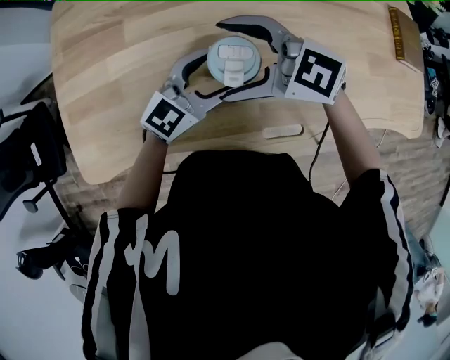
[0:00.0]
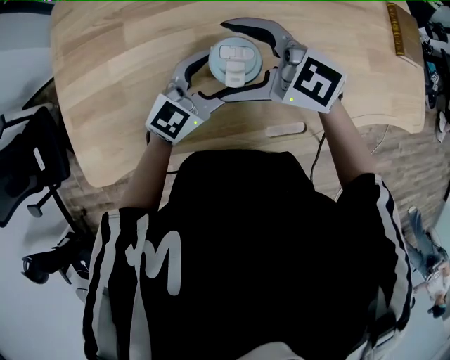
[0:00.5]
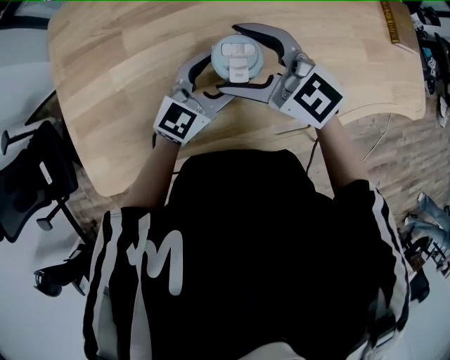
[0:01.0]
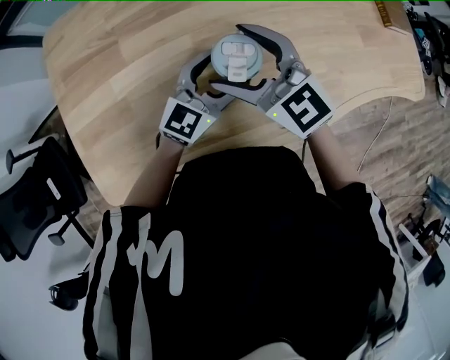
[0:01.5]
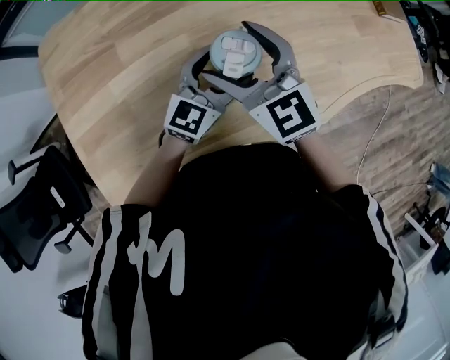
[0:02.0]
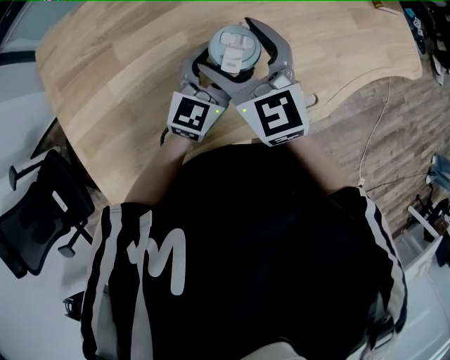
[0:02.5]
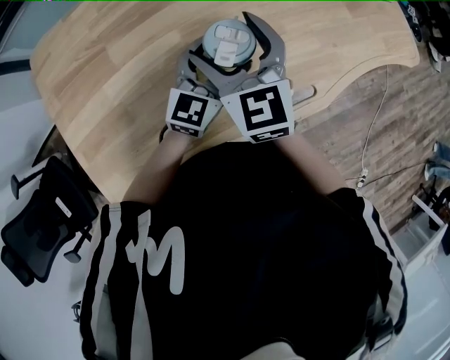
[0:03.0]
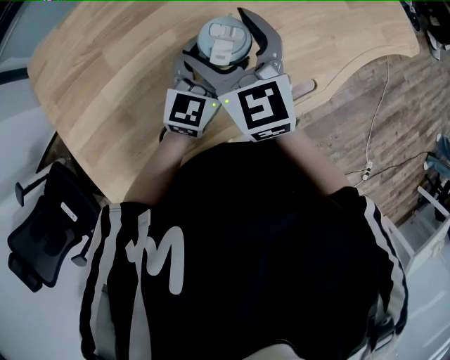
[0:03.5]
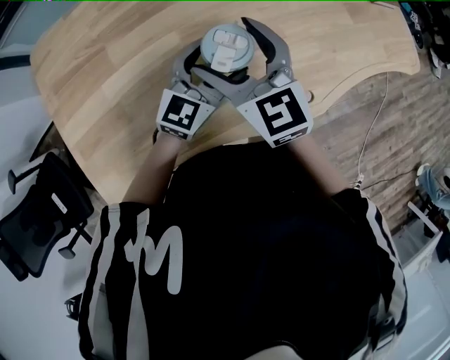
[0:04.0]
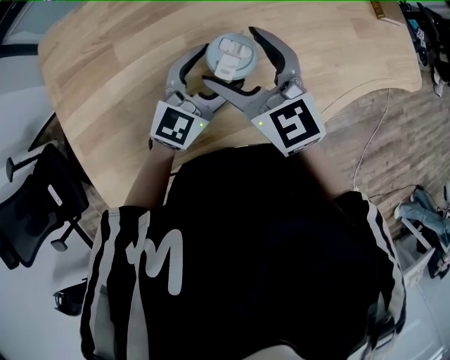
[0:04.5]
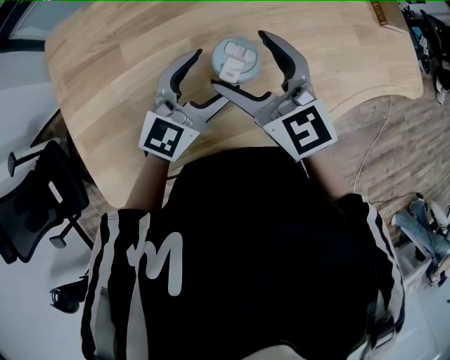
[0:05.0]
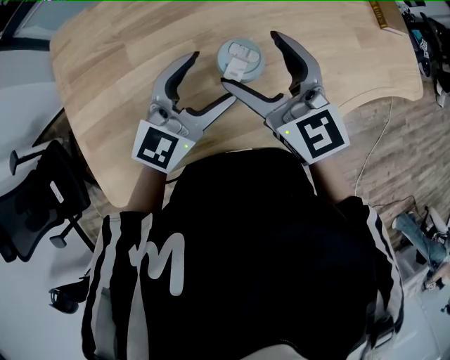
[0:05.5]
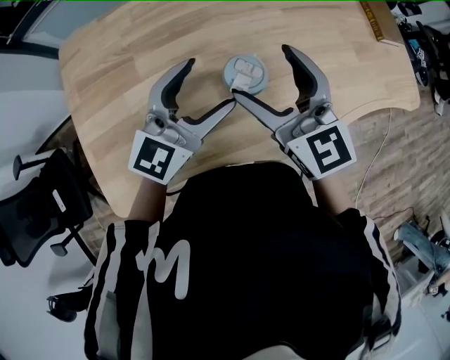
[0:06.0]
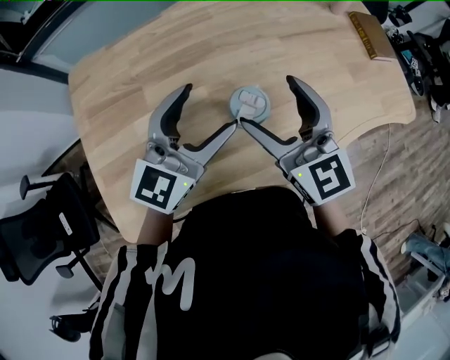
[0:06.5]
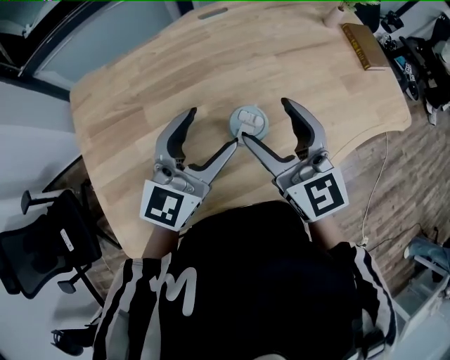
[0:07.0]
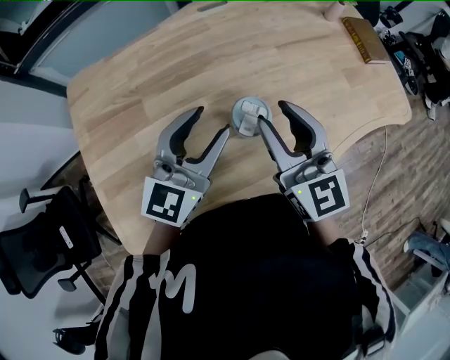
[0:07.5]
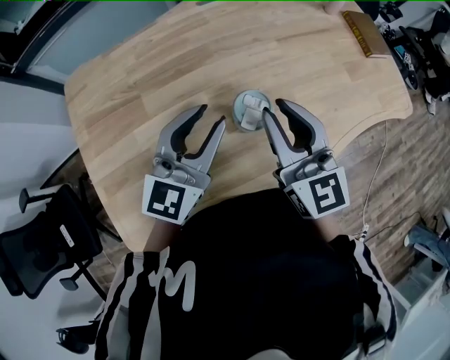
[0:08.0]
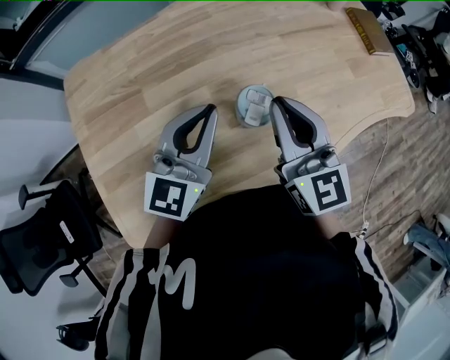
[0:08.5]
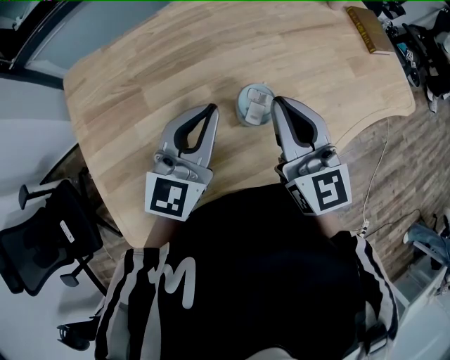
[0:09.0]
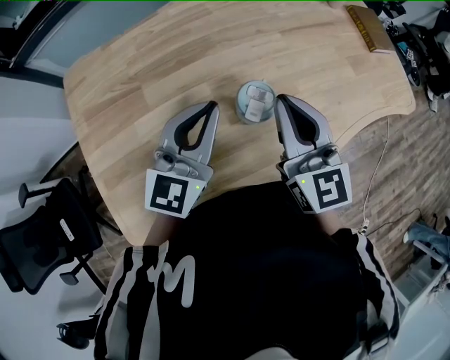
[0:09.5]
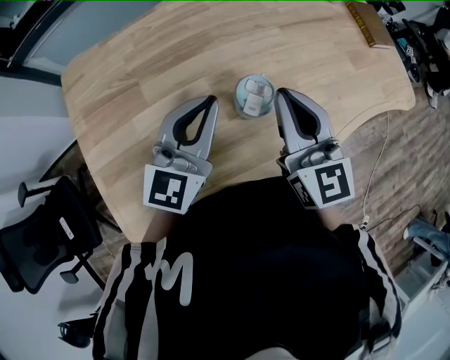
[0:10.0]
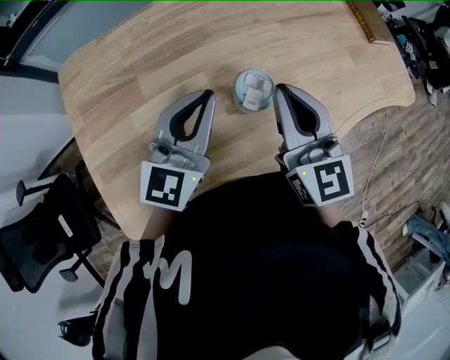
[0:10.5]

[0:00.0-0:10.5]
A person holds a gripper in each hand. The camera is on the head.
0:00.0 to 0:02.0: The right gripper rotates approximately 60 degrees.
0:04.0 to 0:06.5: The left gripper moves upward and to the left, about 20 cm. Meanwhile the right gripper shifts about 10 cm upward.
0:06.5 to 0:08.5: The left gripper closes; the right gripper closes up.
0:08.5 to 0:10.5: Both grippers stay put.

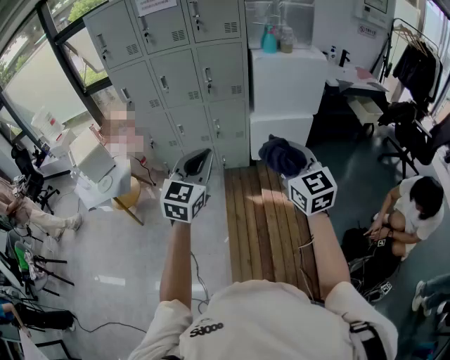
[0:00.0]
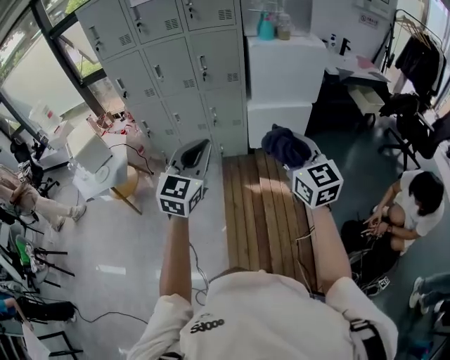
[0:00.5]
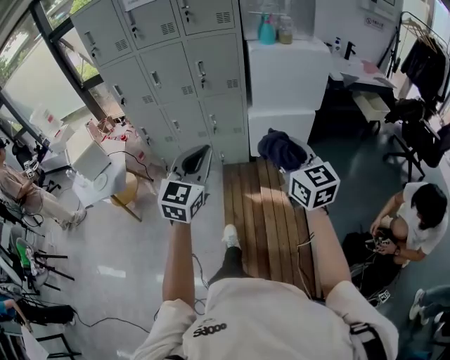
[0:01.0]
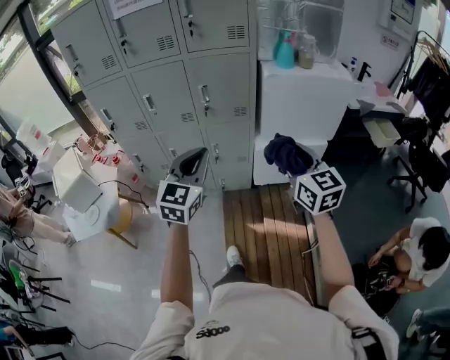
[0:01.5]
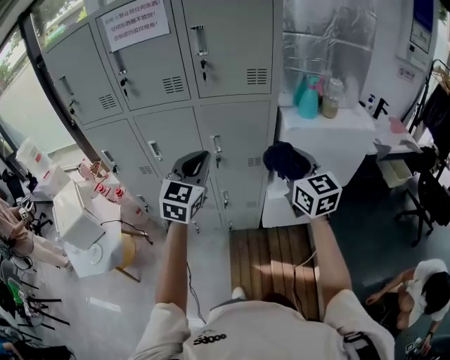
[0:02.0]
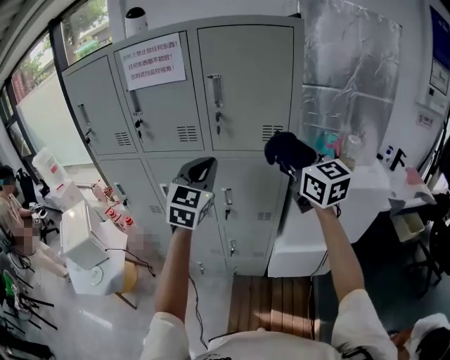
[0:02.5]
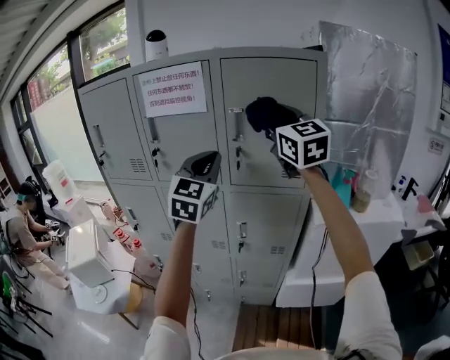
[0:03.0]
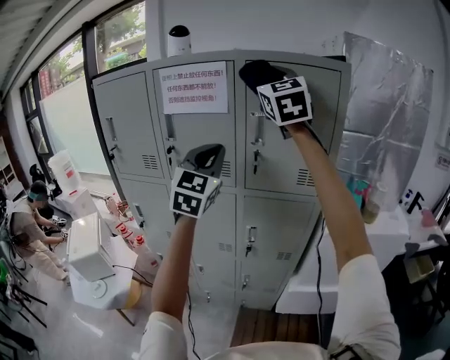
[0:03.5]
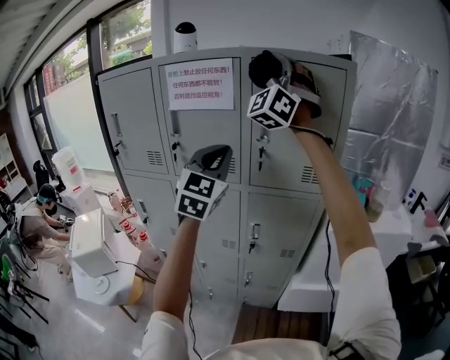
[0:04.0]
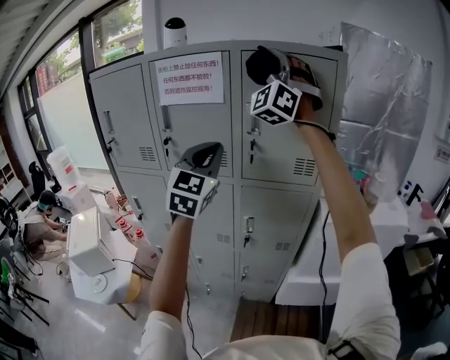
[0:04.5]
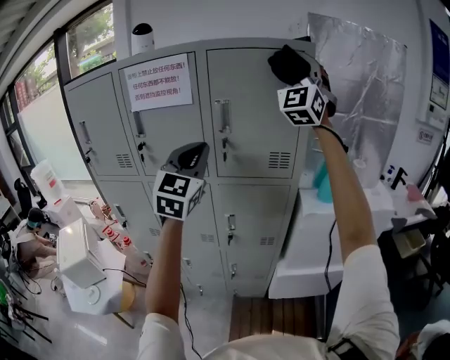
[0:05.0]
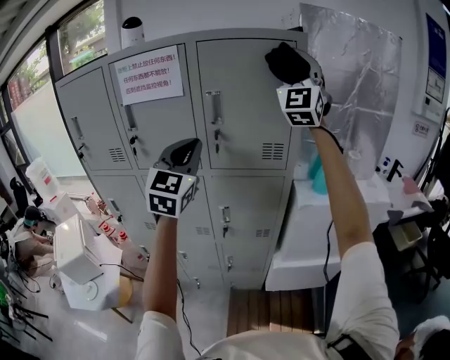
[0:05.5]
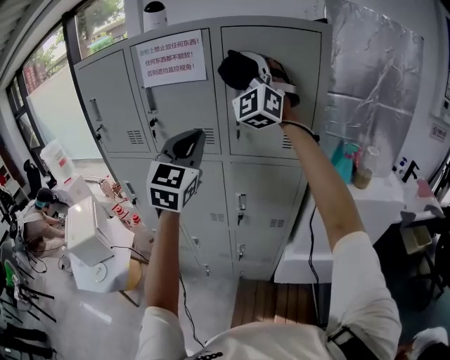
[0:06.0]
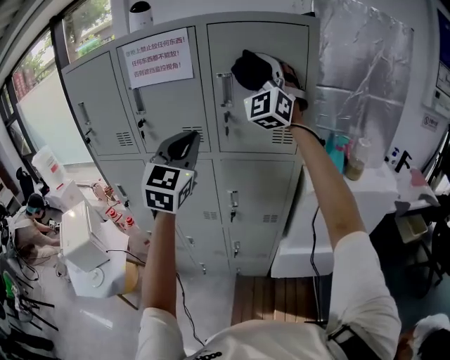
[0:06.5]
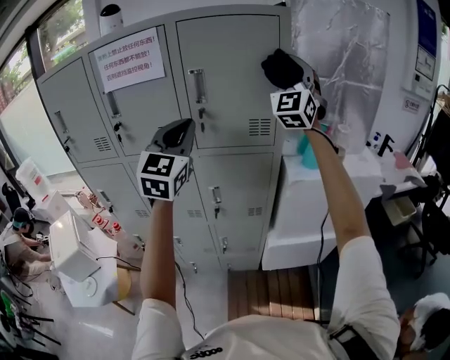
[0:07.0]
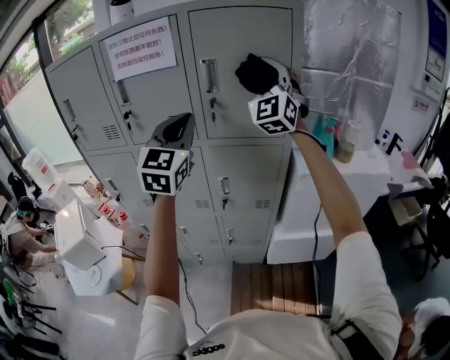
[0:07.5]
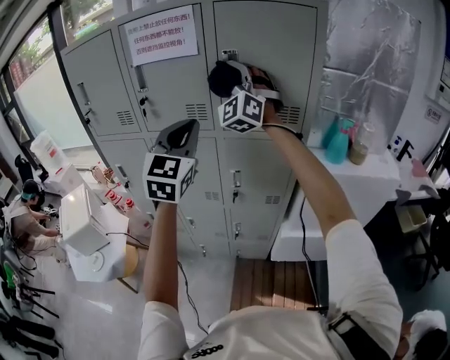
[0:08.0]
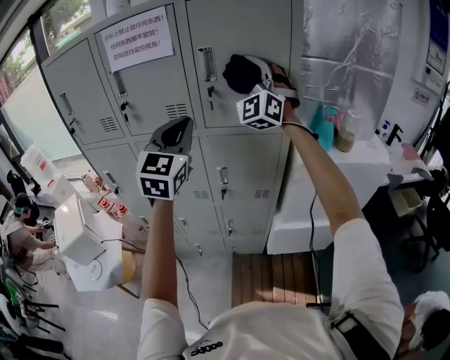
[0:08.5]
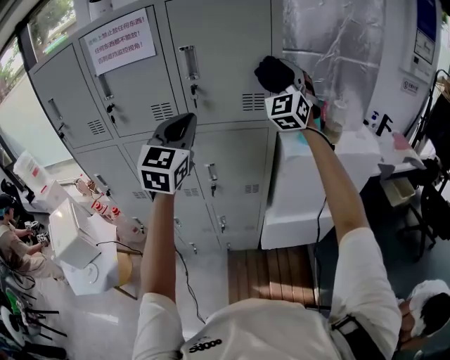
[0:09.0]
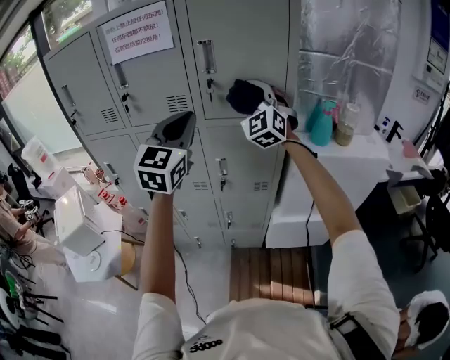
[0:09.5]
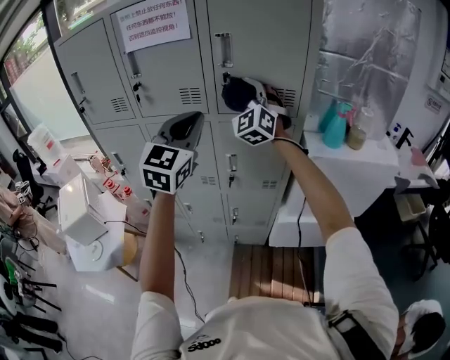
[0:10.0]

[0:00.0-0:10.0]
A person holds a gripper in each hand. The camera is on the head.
0:00.0 to 0:02.0: The two grippers travel together, forward, about 60 cm.
0:02.0 to 0:04.0: The right gripper moves upward and forward, some 50 cm, and rolls counterclockwise, seen from behind, by approximately 70 degrees, while the left gripper moves upward and forward, approximately 25 cm, and swivels some 20 degrees.
0:04.0 to 0:06.0: The right gripper travels downward by some 10 cm, and travels to the right and back again, approximately 20 cm each way.
0:06.0 to 0:08.0: The right gripper travels downward by some 10 cm, and travels to the right and back again, roughly 20 cm each way.
0:08.0 to 0:10.0: The right gripper travels downward by roughly 10 cm, and moves approximately 25 cm to the right and comes back.

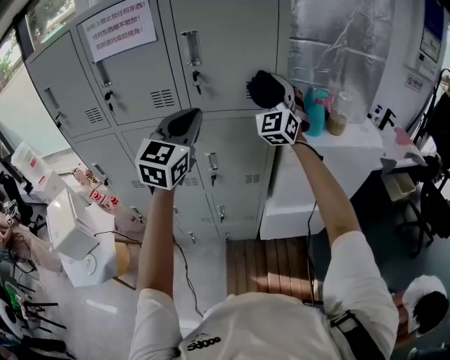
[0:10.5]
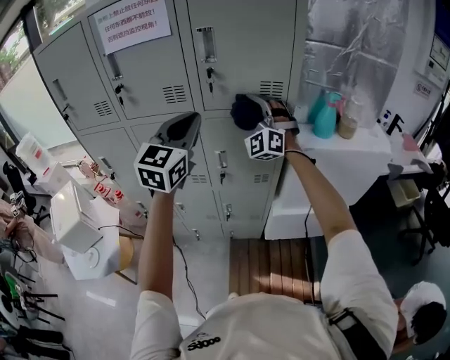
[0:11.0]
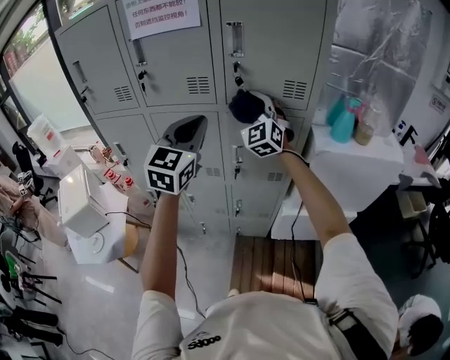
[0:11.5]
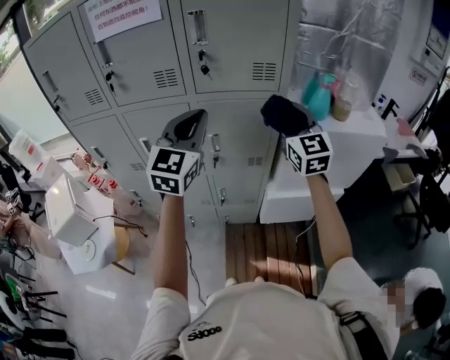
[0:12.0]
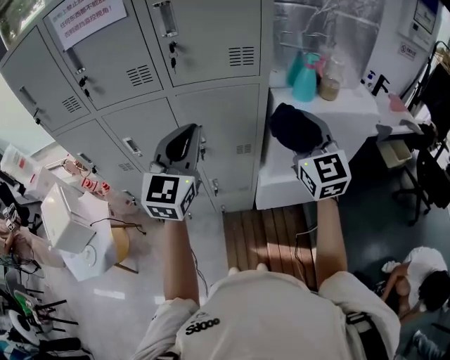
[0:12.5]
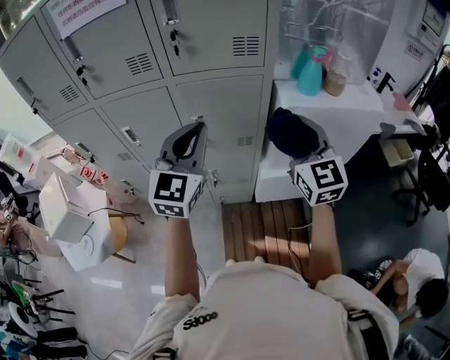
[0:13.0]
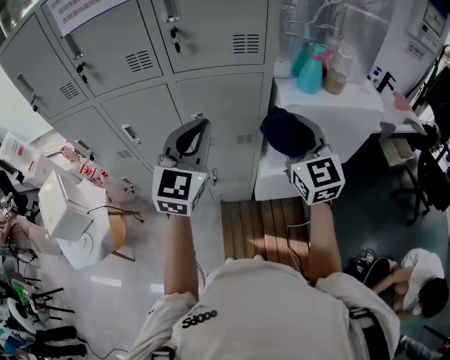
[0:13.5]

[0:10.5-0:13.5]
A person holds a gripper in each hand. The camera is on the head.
0:10.5 to 0:12.0: The left gripper moves approximately 10 cm to the left and comes back. Meanwhile the right gripper is displaced backward and downward by roughly 15 cm, moves roughly 15 cm to the left and comes back, and changes its angle by roughly 40 degrees.
0:12.0 to 0:13.5: The left gripper goes some 10 cm downward and to the right. Meanwhile the right gripper heads backward, covering approximately 10 cm.

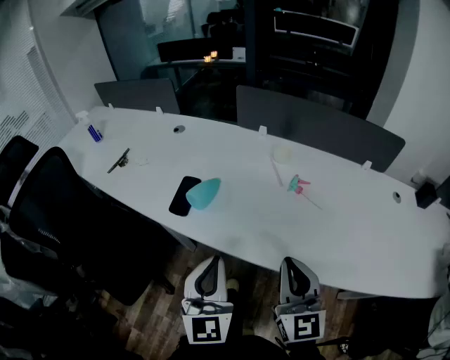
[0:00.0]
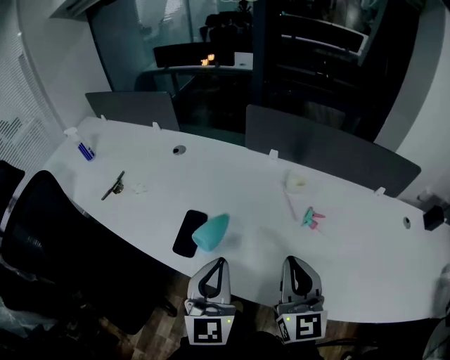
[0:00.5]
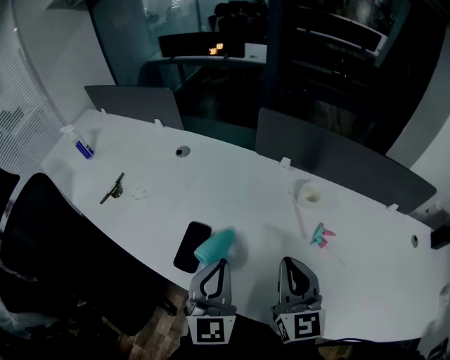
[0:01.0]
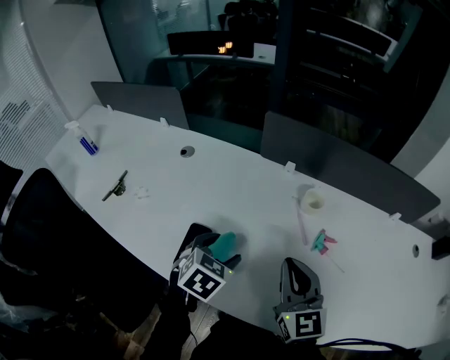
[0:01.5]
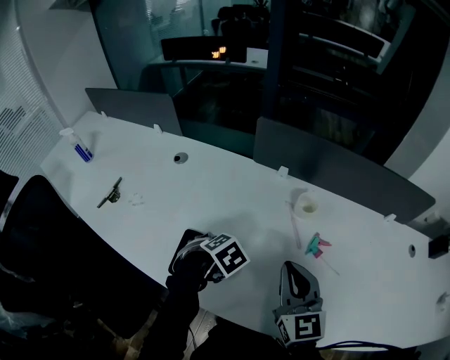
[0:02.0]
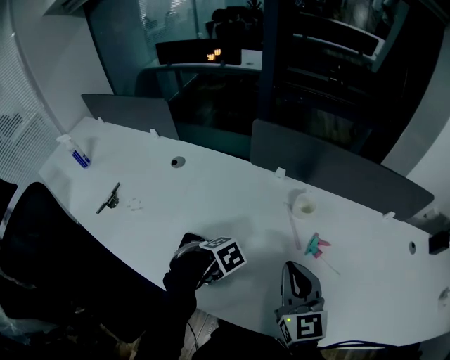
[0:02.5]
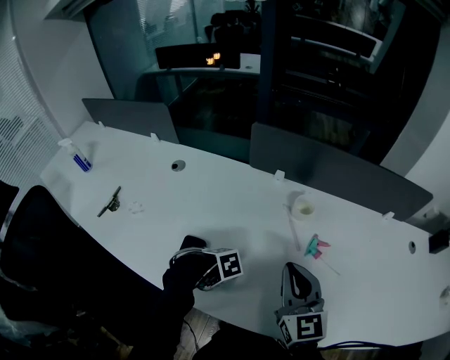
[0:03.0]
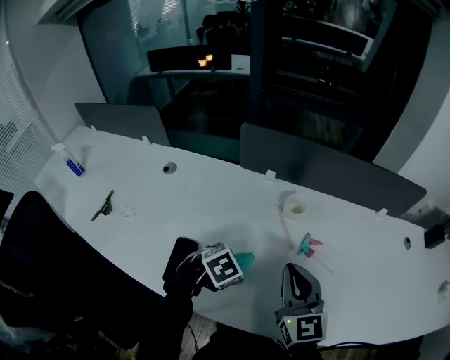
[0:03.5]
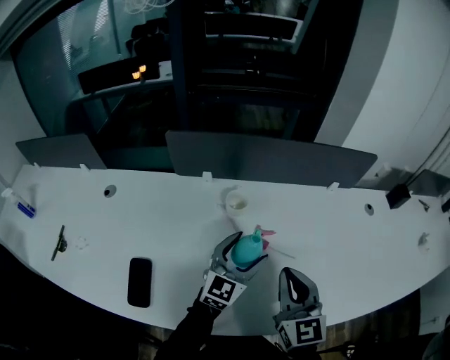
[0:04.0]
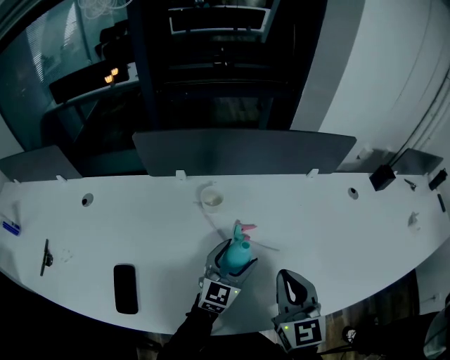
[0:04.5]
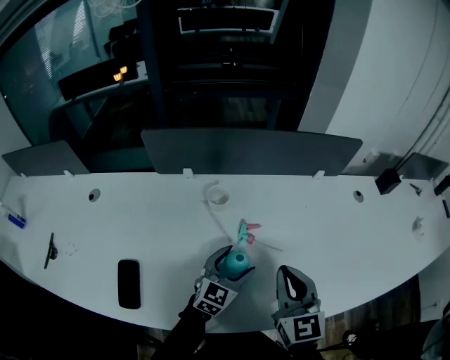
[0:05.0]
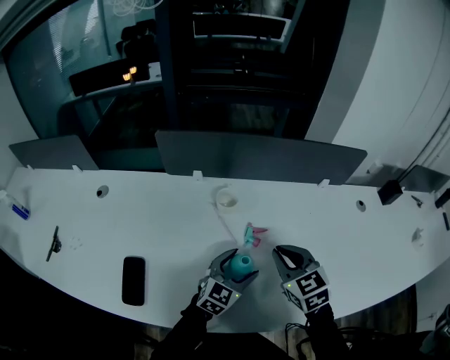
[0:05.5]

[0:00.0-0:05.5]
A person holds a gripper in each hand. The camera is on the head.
0:00.0 to 0:02.0: The right gripper moves approximately 25 cm; the left gripper moves some 35 cm, tips its fingers downward by approximately 80 degrees, and opens.
0:02.0 to 0:03.5: The left gripper ends up approximately 5 cm from where it was.
0:03.5 to 0:05.5: The left gripper shifts approximately 20 cm to the right and forward, and angles its fingers upward, by roughly 50 degrees. The right gripper moves to the right, forward and downward, some 15 cm, and swivels about 30 degrees.
